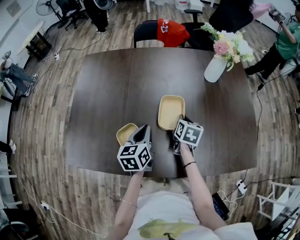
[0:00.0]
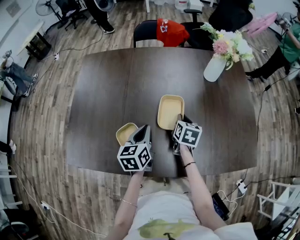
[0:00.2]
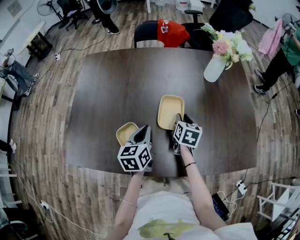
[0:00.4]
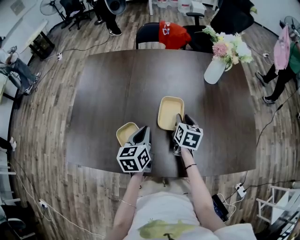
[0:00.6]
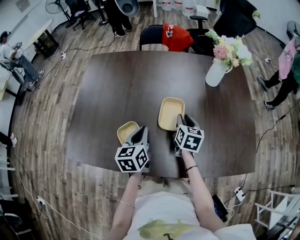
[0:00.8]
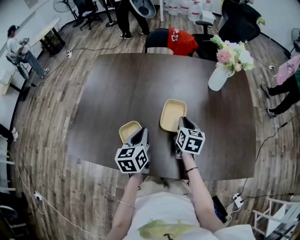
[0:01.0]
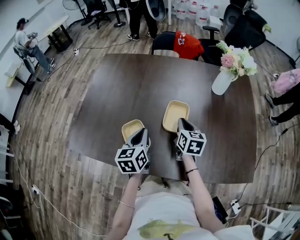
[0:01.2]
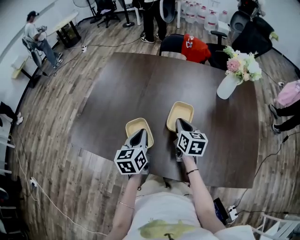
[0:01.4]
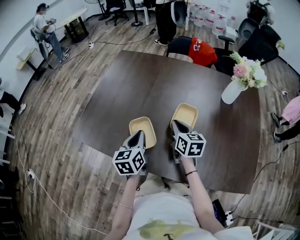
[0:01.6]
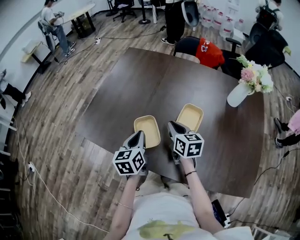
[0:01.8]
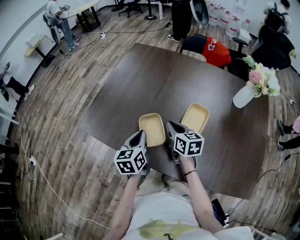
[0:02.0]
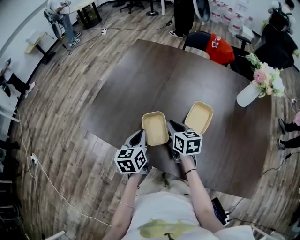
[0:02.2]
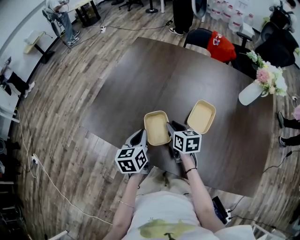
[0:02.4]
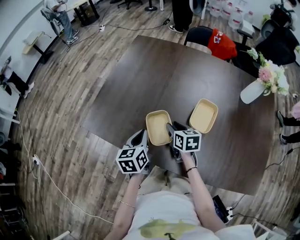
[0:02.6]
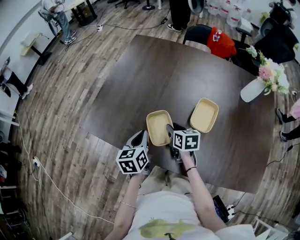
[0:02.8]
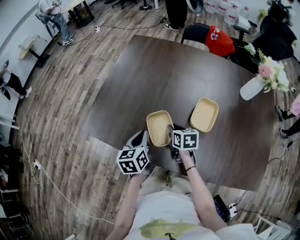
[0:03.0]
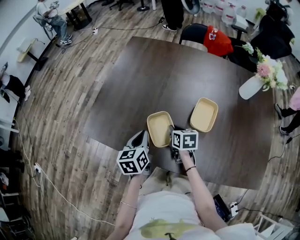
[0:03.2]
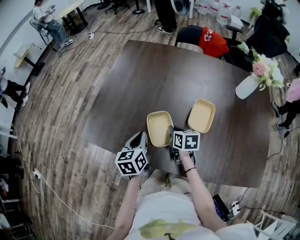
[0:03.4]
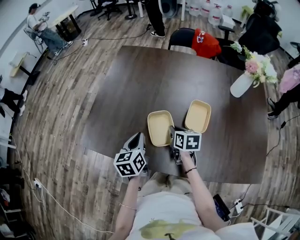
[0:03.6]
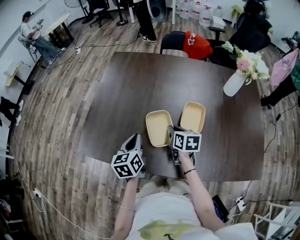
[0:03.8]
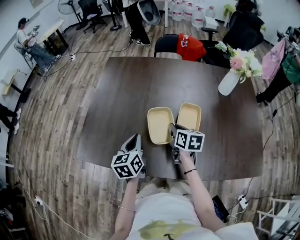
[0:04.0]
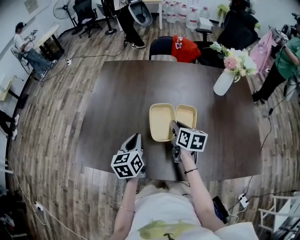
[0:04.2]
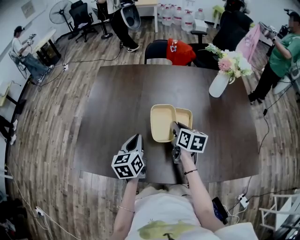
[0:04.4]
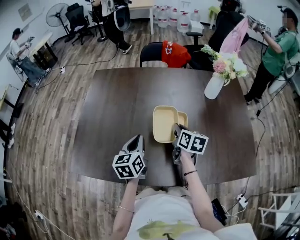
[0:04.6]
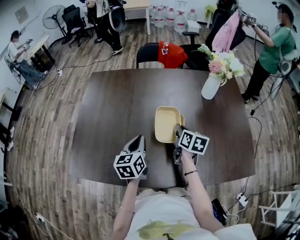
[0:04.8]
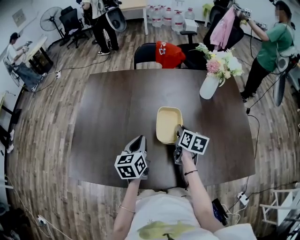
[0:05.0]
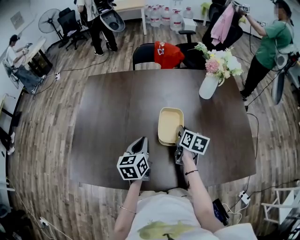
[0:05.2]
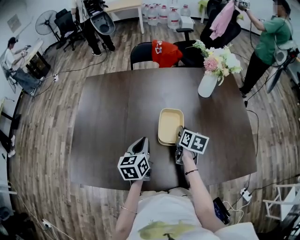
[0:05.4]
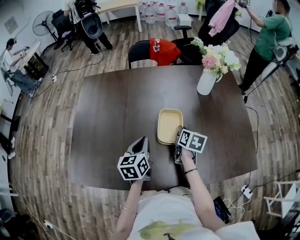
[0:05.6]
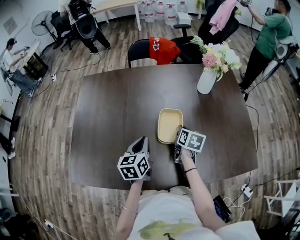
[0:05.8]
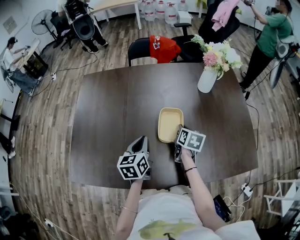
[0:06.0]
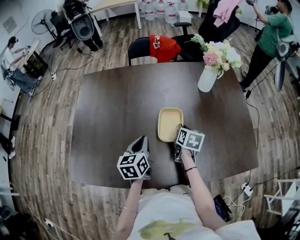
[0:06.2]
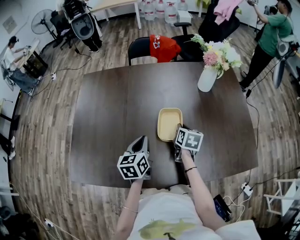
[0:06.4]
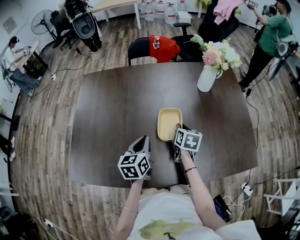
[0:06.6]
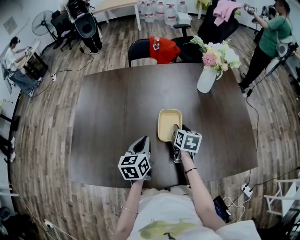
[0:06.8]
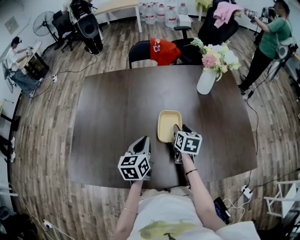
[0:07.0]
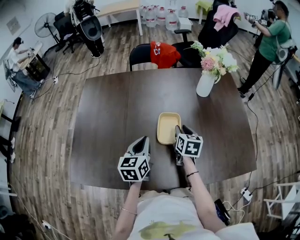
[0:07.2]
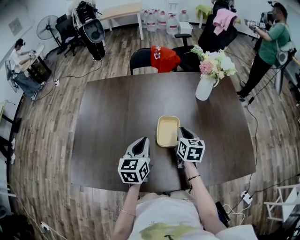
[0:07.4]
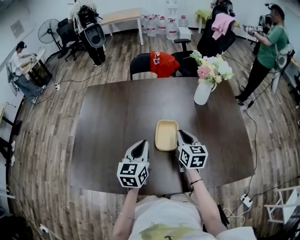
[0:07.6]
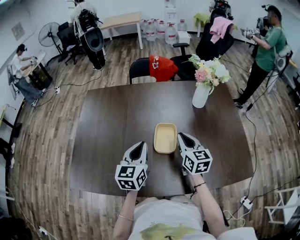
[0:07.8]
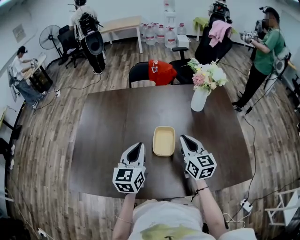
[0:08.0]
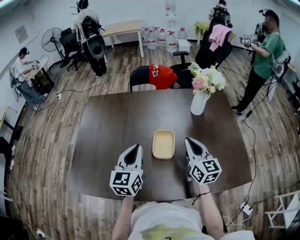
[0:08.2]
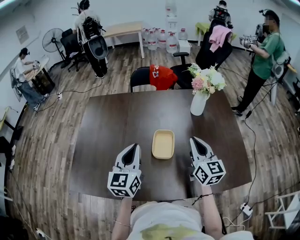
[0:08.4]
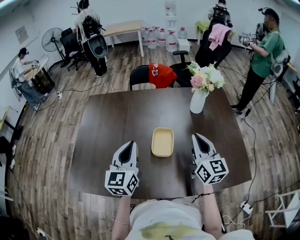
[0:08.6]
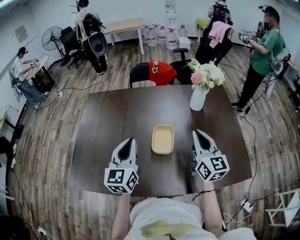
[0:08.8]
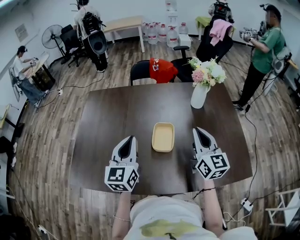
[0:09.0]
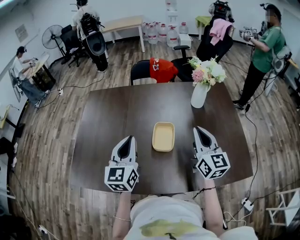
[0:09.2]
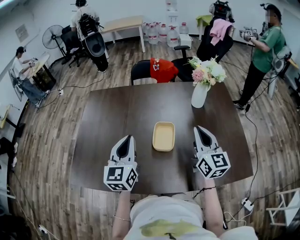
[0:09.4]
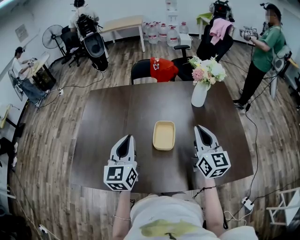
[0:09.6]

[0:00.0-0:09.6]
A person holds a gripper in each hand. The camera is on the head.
0:00.0 to 0:01.6: The right gripper moves roughly 15 cm, rotates approximately 40 degrees, and opens and closes again; the left gripper shifts by roughly 10 cm, and changes its angle by some 20 degrees.
0:01.6 to 0:03.2: The left gripper moves to the left, some 5 cm; the right gripper is displaced downward and to the left by roughly 15 cm, turns by some 20 degrees, and opens and closes again.
0:03.2 to 0:04.8: The left gripper changes place by roughly 15 cm, and swivels approximately 20 degrees; the right gripper shifts by roughly 20 cm, and turns by roughly 40 degrees.
0:04.8 to 0:06.4: The right gripper moves approximately 5 cm.
0:06.4 to 0:08.0: The two grippers go about 15 cm upward. The right gripper tips its fingers upward by some 30 degrees, and opens and closes again. Meanwhile the left gripper swivels roughly 20 degrees.
0:08.0 to 0:09.6: The two grippers go some 5 cm upward.

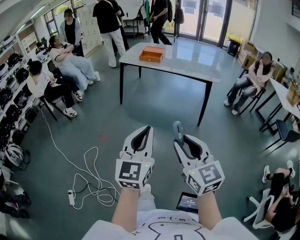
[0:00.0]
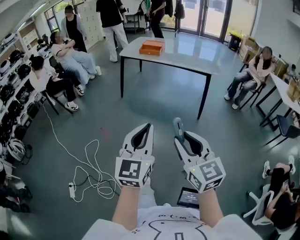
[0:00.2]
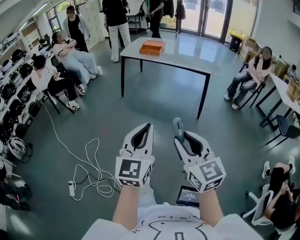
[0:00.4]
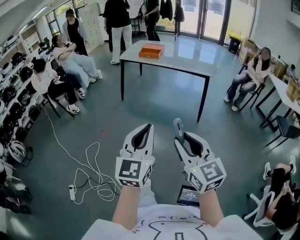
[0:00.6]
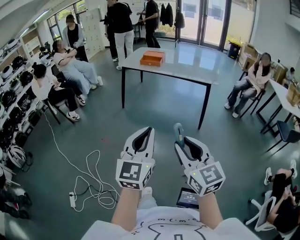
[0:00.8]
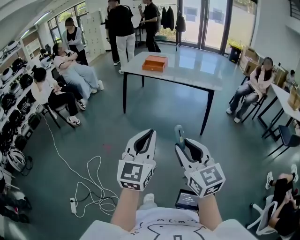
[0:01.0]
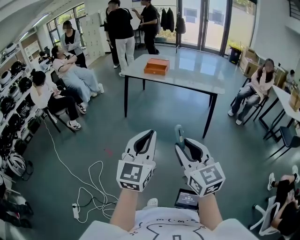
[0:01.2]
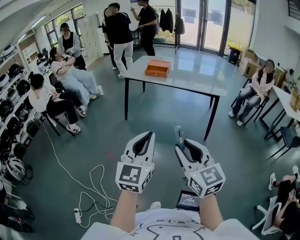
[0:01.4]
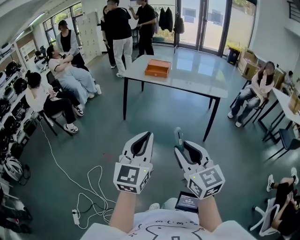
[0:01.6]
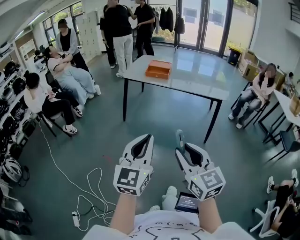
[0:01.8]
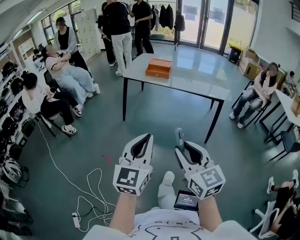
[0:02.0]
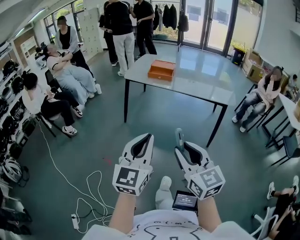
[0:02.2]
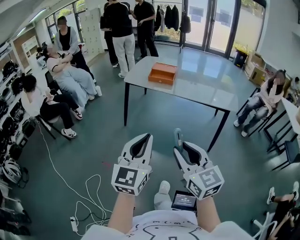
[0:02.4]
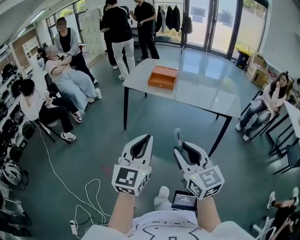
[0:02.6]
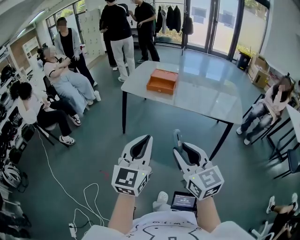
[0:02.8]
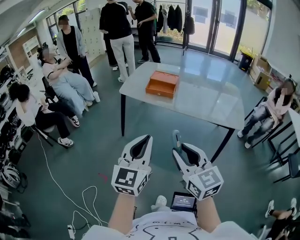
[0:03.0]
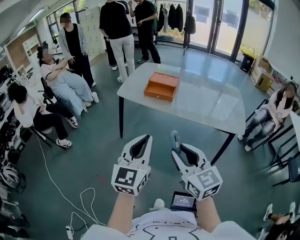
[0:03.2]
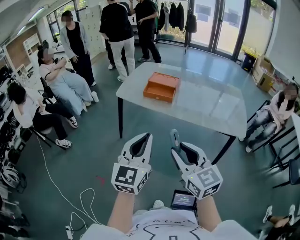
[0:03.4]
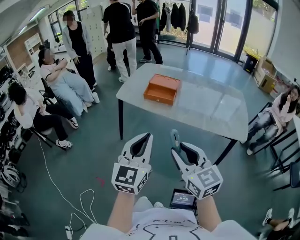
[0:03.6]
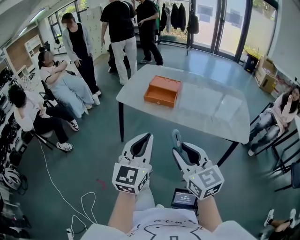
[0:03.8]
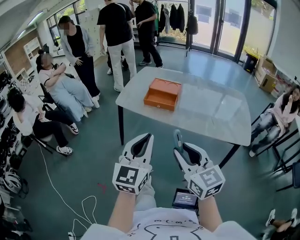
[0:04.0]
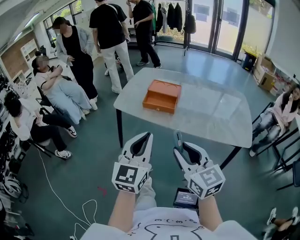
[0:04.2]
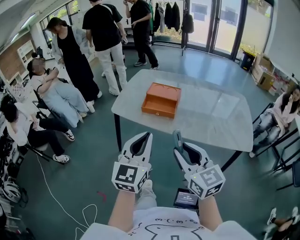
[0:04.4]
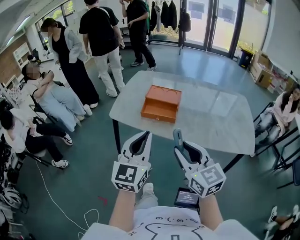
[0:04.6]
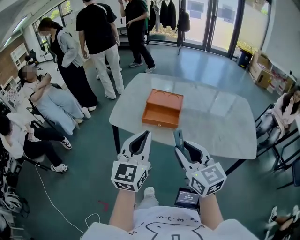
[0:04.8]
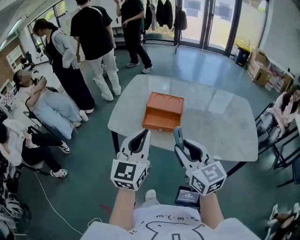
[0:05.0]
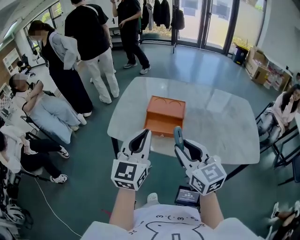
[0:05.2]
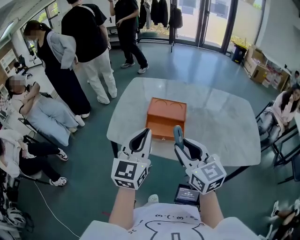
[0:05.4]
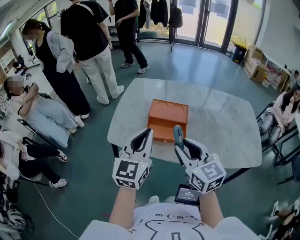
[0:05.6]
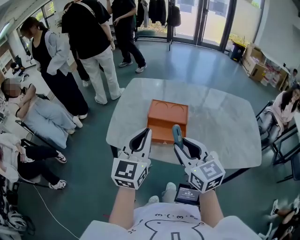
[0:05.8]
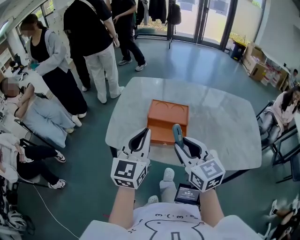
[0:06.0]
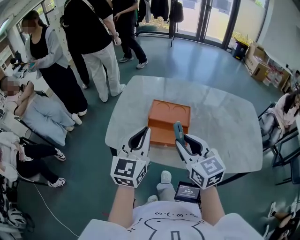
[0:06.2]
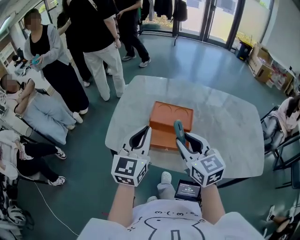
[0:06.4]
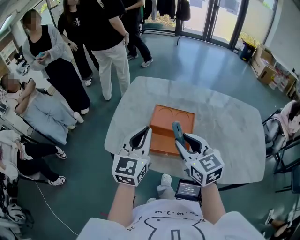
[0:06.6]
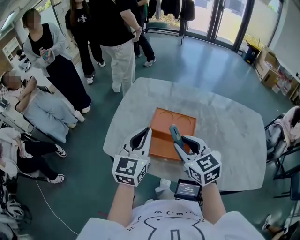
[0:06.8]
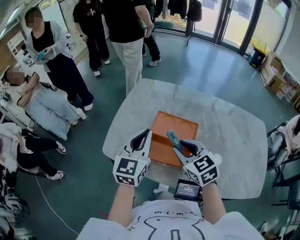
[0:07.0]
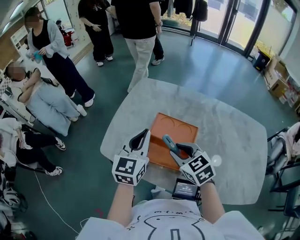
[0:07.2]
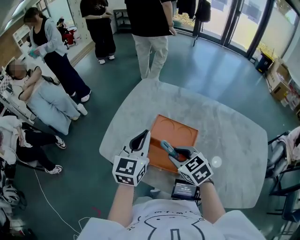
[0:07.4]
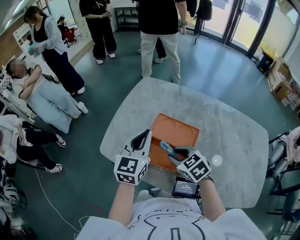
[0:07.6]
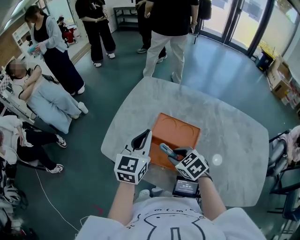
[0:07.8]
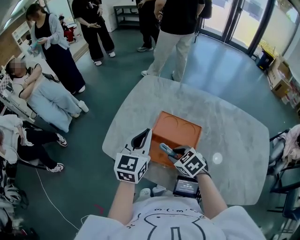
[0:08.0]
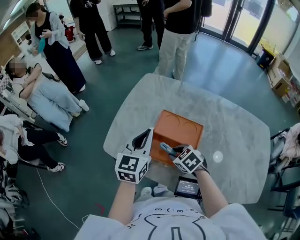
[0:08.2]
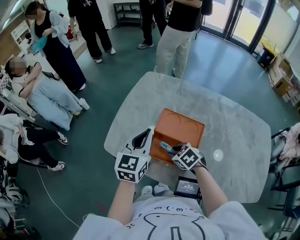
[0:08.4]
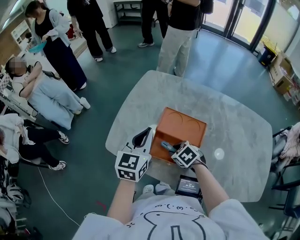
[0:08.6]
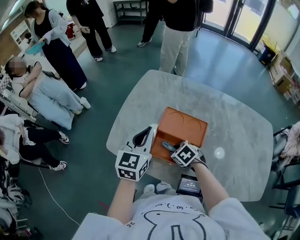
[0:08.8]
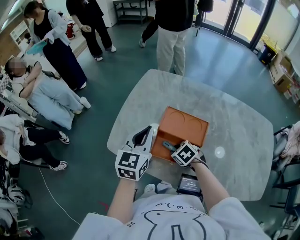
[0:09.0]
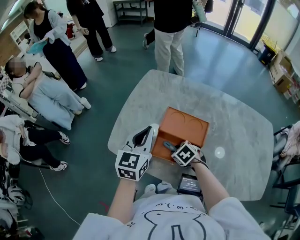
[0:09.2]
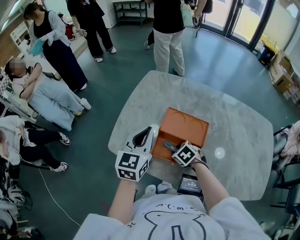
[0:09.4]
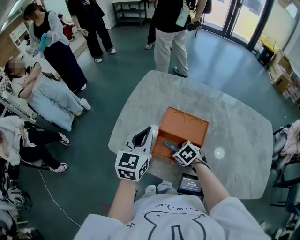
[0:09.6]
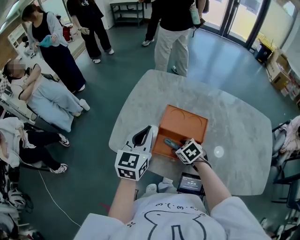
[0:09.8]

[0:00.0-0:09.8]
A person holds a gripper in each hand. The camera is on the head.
0:00.0 to 0:01.4: The right gripper shifts about 10 cm forward and to the left. The left gripper heads forward, covering some 10 cm.
0:01.4 to 0:02.8: The two grippers go about 30 cm forward.
0:02.8 to 0:04.2: The two grippers go approximately 20 cm forward.
0:04.2 to 0:05.6: Both grippers move forward, some 30 cm.
0:05.6 to 0:07.0: The right gripper moves forward and downward, some 20 cm, and swivels some 30 degrees. Meanwhile the left gripper is displaced forward by about 15 cm.
0:07.0 to 0:08.4: The left gripper moves approximately 5 cm, while the right gripper heads downward, covering approximately 15 cm, and changes its angle by approximately 30 degrees.
0:08.4 to 0:09.8: The right gripper opens its fingers.

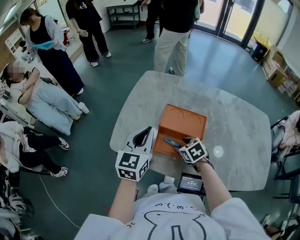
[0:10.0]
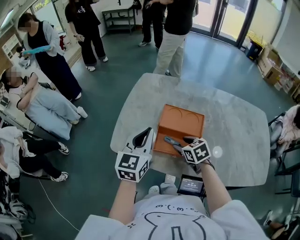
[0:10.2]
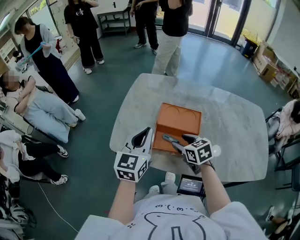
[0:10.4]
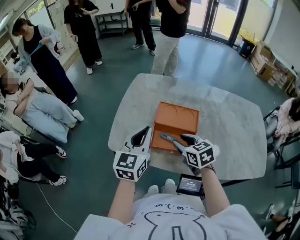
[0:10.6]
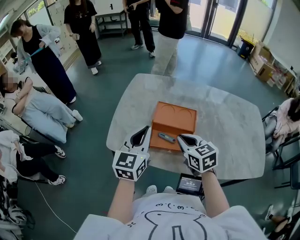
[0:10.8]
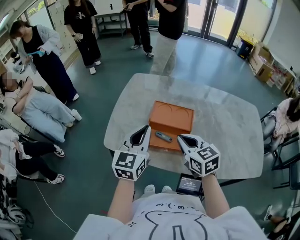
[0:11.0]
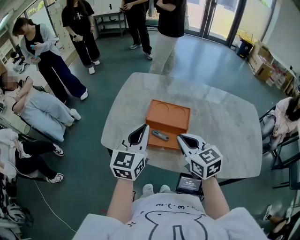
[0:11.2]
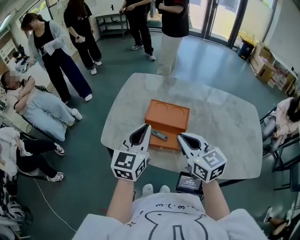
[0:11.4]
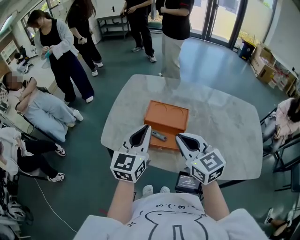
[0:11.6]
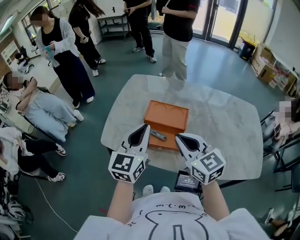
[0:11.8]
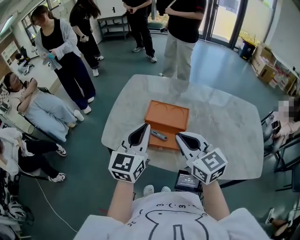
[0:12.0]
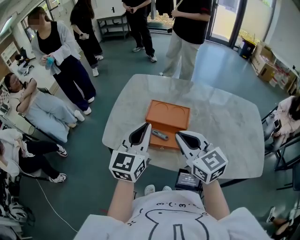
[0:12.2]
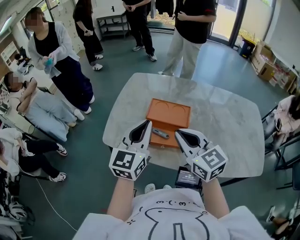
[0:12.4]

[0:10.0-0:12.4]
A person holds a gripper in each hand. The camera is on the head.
0:10.0 to 0:11.2: The left gripper is displaced backward by about 5 cm, while the right gripper shifts roughly 20 cm upward and backward, angles its fingers upward, by roughly 30 degrees, and closes up.
0:11.2 to 0:12.4: The right gripper goes some 5 cm upward.

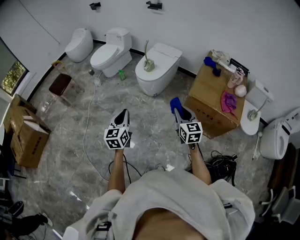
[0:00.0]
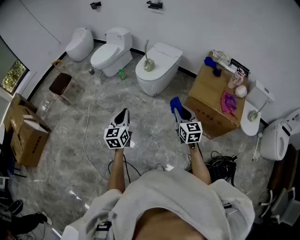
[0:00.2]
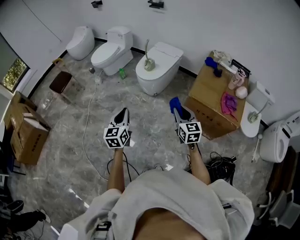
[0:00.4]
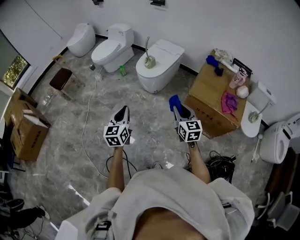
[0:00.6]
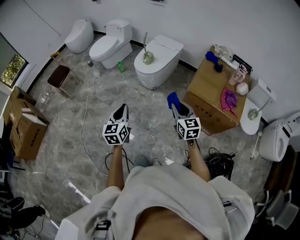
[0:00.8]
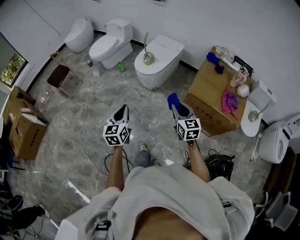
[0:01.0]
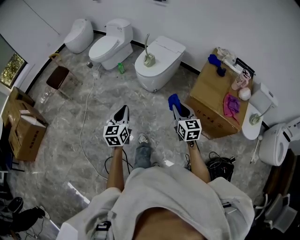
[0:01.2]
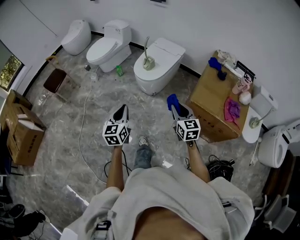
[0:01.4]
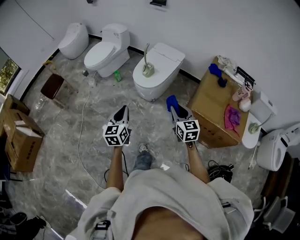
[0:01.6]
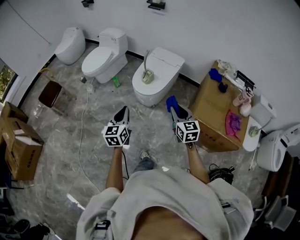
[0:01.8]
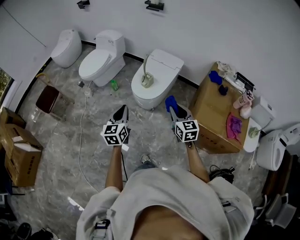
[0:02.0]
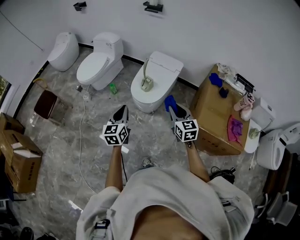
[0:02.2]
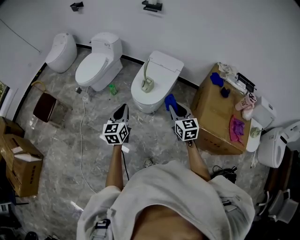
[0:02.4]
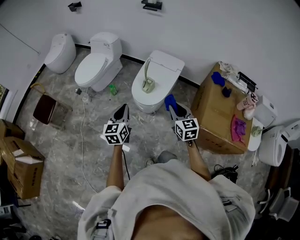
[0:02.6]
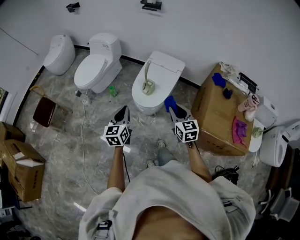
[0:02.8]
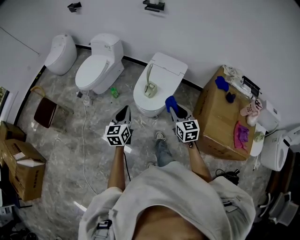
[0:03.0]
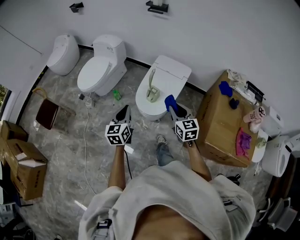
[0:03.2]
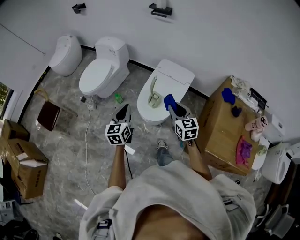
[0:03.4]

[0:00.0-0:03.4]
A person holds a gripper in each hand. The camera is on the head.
0:00.0 to 0:01.6: The grippers both shift forward by about 15 cm.
0:01.6 to 0:03.4: Both grippers travel together forward, approximately 35 cm.
